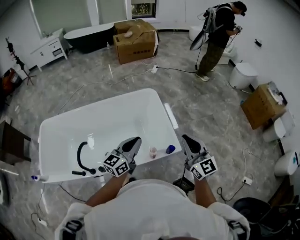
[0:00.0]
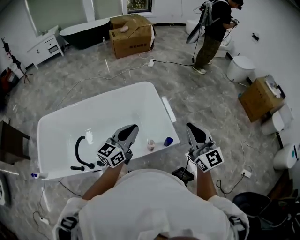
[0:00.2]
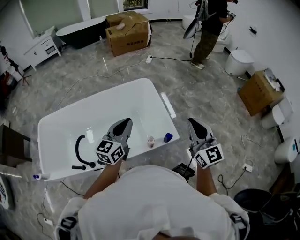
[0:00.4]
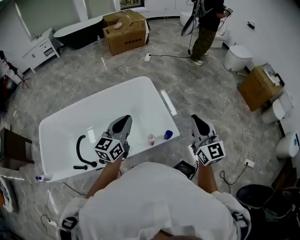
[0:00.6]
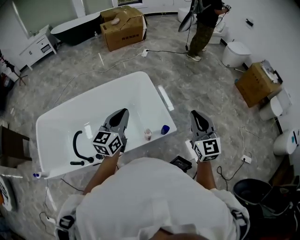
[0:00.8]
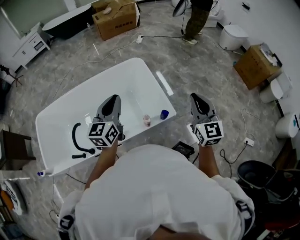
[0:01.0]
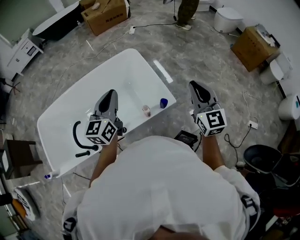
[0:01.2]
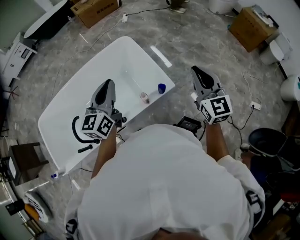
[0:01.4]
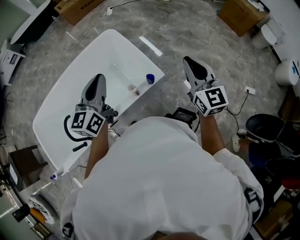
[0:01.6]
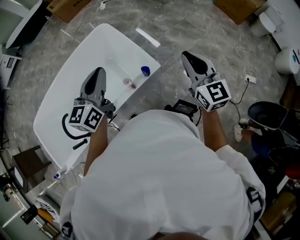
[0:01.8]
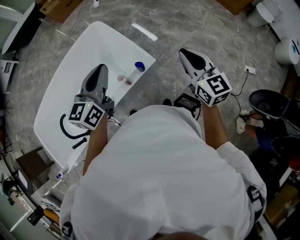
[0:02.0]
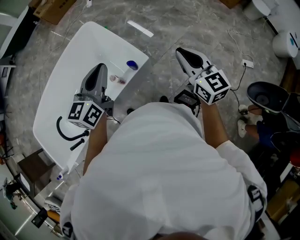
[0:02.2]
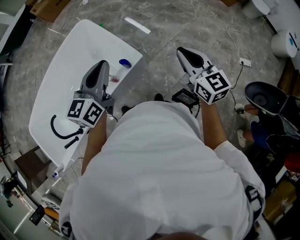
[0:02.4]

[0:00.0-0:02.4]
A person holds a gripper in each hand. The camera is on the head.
0:00.0 to 0:01.2: The right gripper goes some 10 cm to the right, and swivels roughly 20 degrees. Meanwhile the left gripper goes approximately 5 cm upward.
0:01.2 to 0:02.4: The right gripper is displaced to the right, downward and backward by roughly 20 cm; the left gripper shifts roughly 20 cm to the right, and turns by roughly 30 degrees.

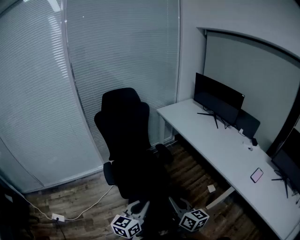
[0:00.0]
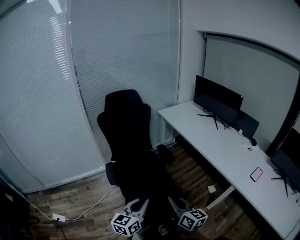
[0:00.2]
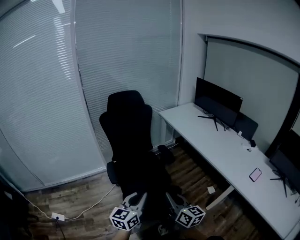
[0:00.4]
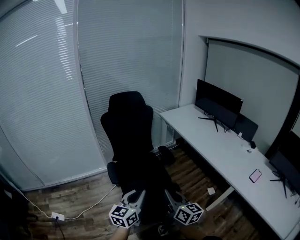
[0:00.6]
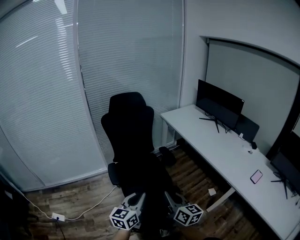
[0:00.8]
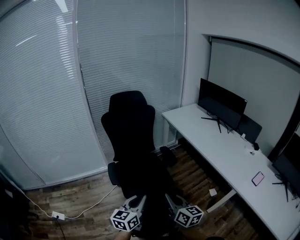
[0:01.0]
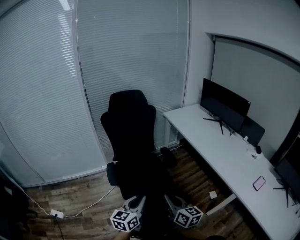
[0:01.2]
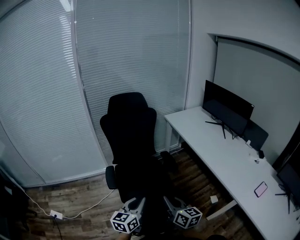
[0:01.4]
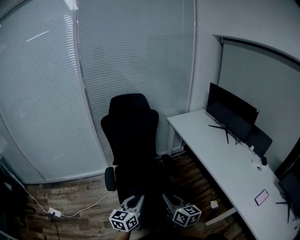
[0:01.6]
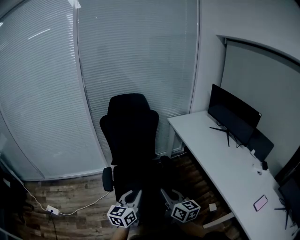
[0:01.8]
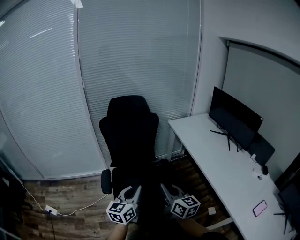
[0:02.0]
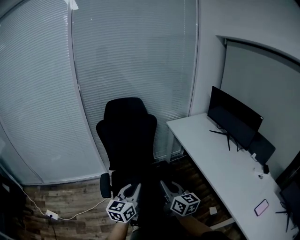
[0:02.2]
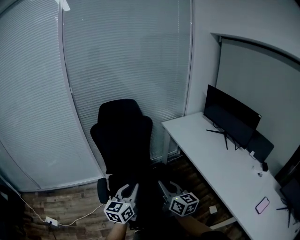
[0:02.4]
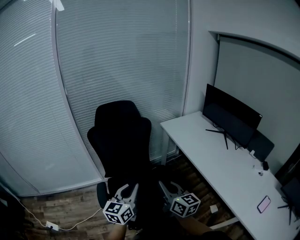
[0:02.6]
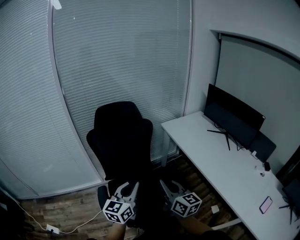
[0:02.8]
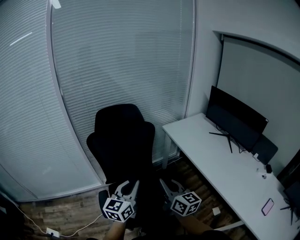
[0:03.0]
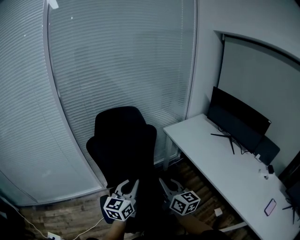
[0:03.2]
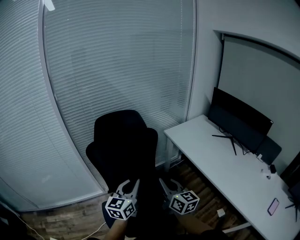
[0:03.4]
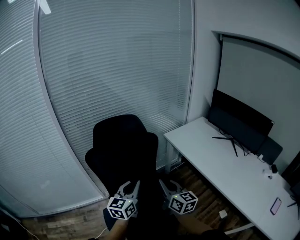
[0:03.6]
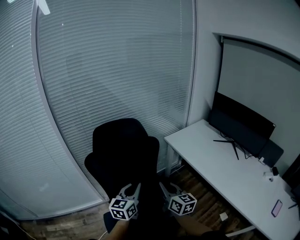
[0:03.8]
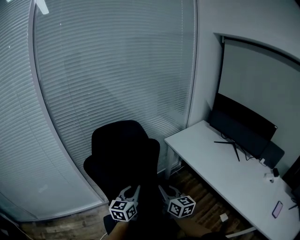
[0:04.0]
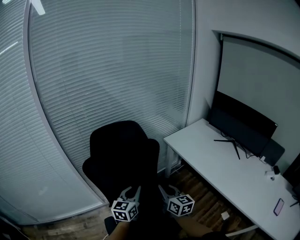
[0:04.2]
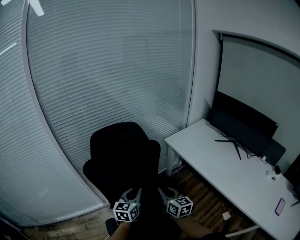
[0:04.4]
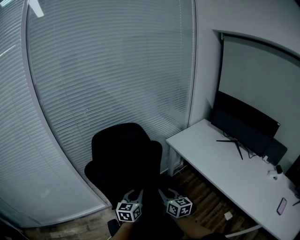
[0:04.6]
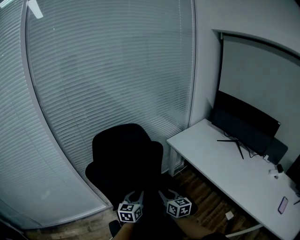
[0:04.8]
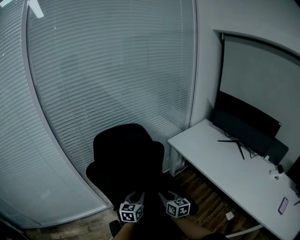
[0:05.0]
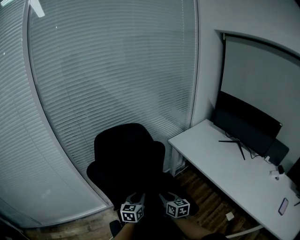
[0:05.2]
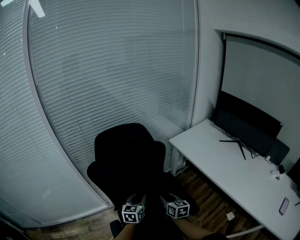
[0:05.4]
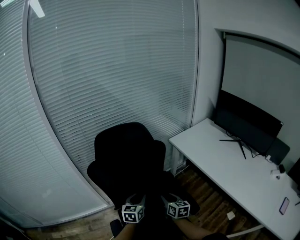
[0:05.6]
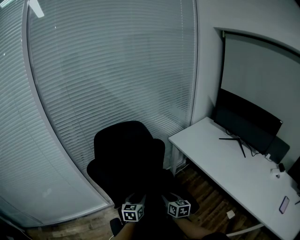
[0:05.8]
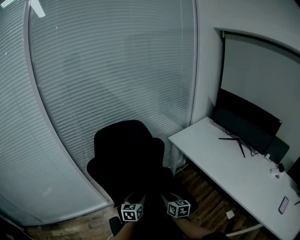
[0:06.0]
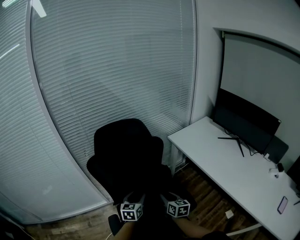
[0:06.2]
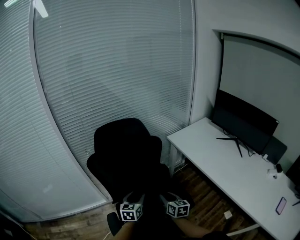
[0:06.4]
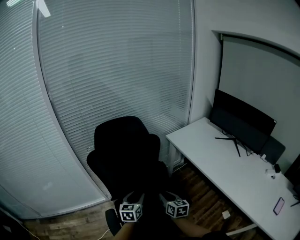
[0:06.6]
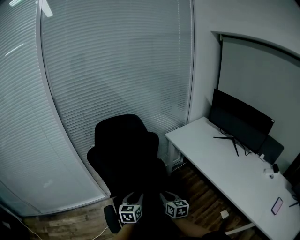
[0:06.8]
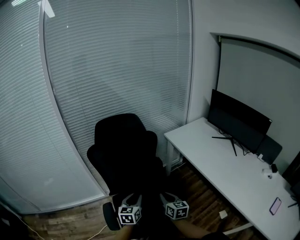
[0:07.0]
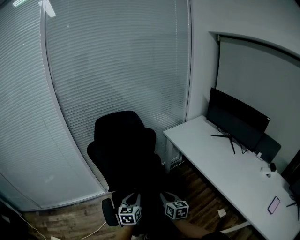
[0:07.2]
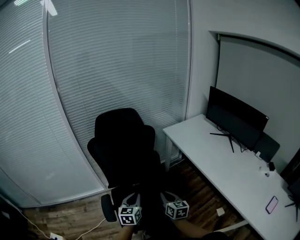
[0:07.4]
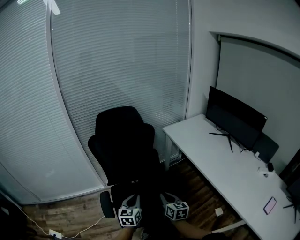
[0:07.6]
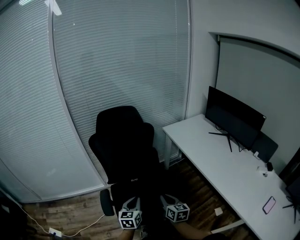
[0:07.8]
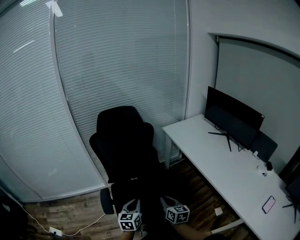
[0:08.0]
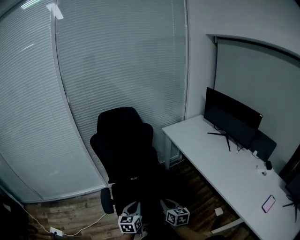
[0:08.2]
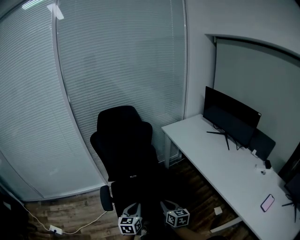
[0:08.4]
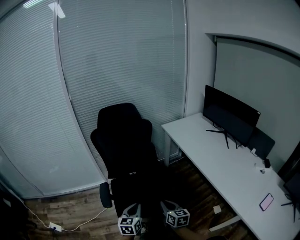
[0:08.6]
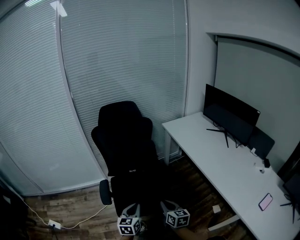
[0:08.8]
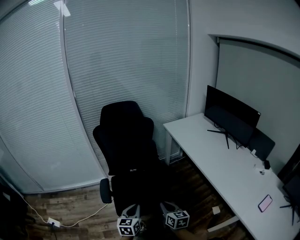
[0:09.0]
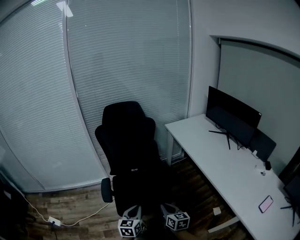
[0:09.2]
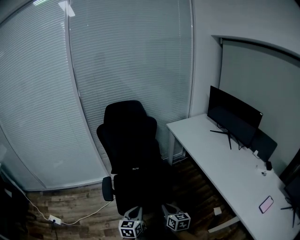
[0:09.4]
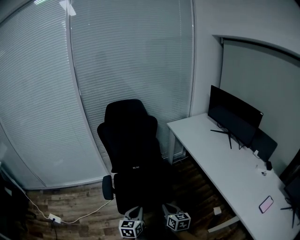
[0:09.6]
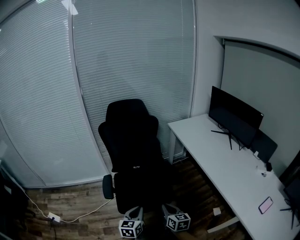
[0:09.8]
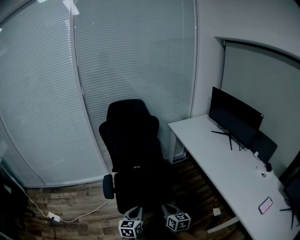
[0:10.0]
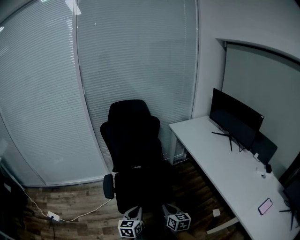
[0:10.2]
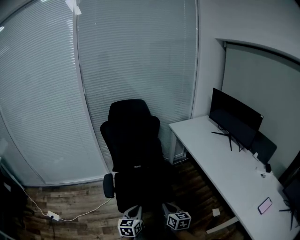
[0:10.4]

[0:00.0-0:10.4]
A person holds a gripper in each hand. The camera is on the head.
0:00.0 to 0:01.4: Both grippers move forward, about 5 cm.
0:01.4 to 0:03.0: The grippers both shift forward by roughly 30 cm.
0:03.0 to 0:04.4: The grippers both shift forward and downward by approximately 25 cm.
0:04.4 to 0:06.0: Both grippers travel together downward, approximately 10 cm. The left gripper opens up.
0:06.0 to 0:07.4: The two grippers go approximately 20 cm backward. The left gripper closes.
0:07.4 to 0:09.0: Both grippers travel together backward, approximately 20 cm.
0:09.0 to 0:10.4: The left gripper ends up about 5 cm from where it was.

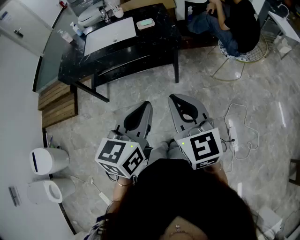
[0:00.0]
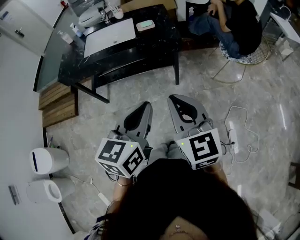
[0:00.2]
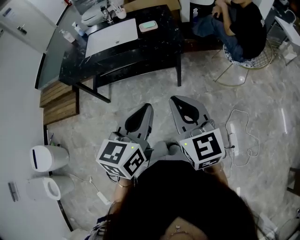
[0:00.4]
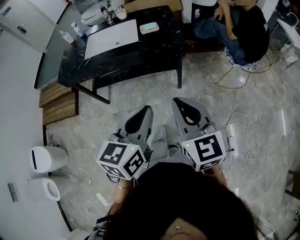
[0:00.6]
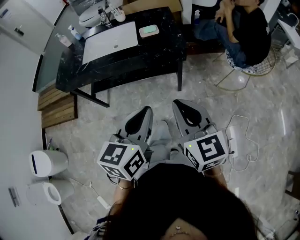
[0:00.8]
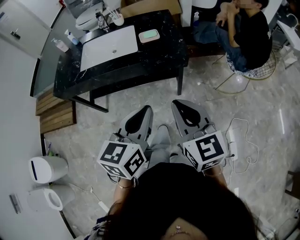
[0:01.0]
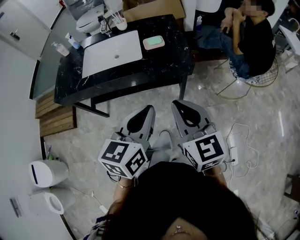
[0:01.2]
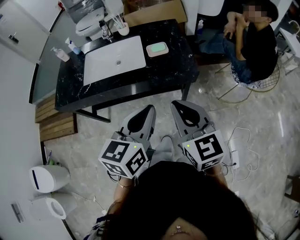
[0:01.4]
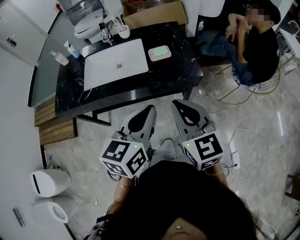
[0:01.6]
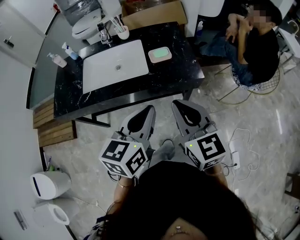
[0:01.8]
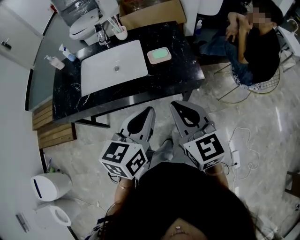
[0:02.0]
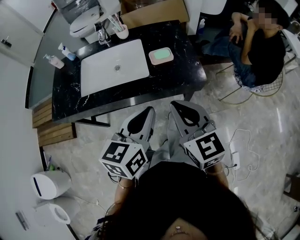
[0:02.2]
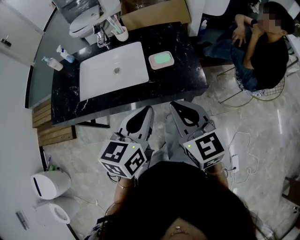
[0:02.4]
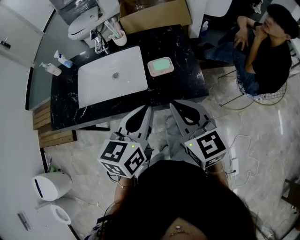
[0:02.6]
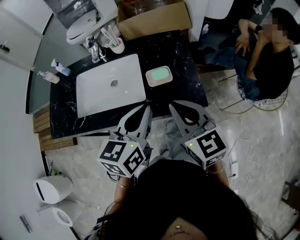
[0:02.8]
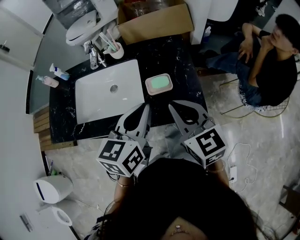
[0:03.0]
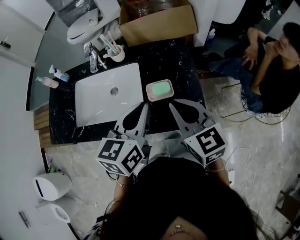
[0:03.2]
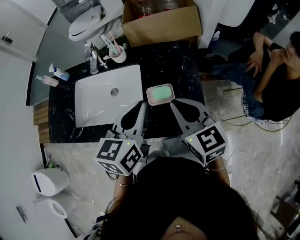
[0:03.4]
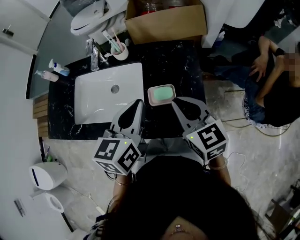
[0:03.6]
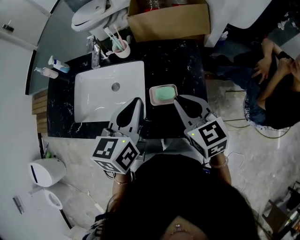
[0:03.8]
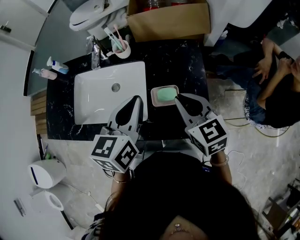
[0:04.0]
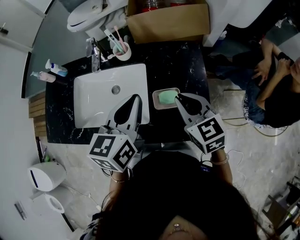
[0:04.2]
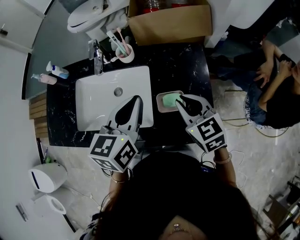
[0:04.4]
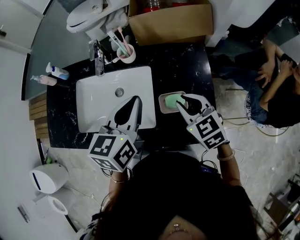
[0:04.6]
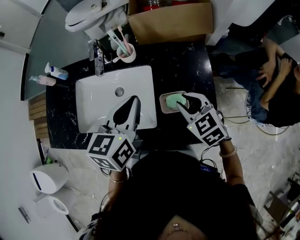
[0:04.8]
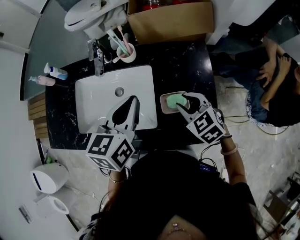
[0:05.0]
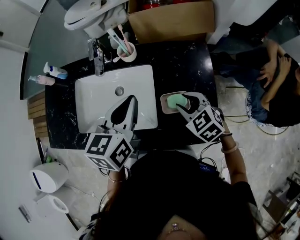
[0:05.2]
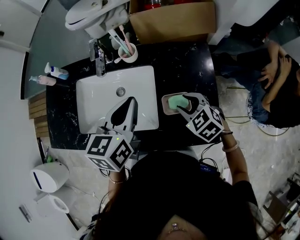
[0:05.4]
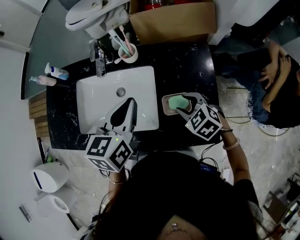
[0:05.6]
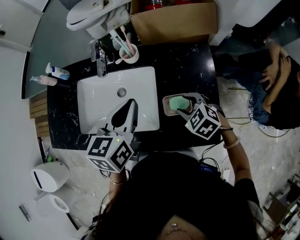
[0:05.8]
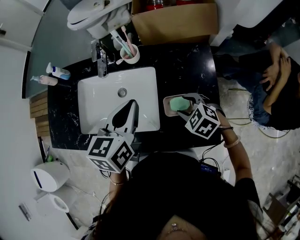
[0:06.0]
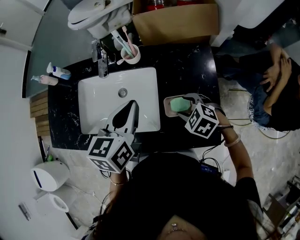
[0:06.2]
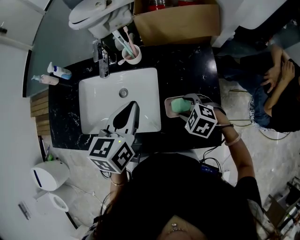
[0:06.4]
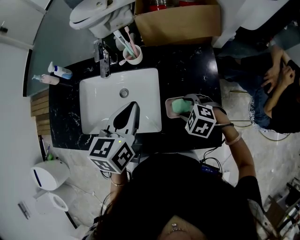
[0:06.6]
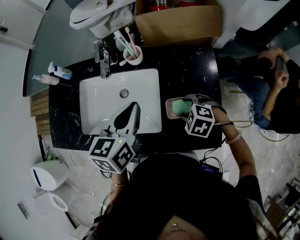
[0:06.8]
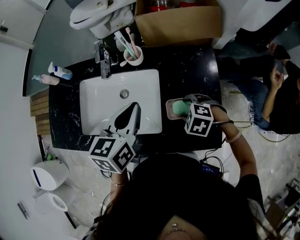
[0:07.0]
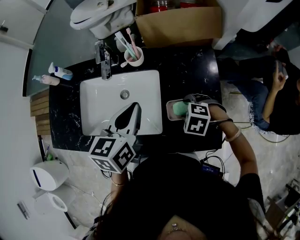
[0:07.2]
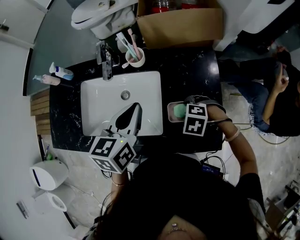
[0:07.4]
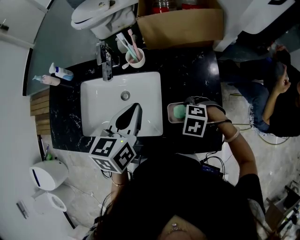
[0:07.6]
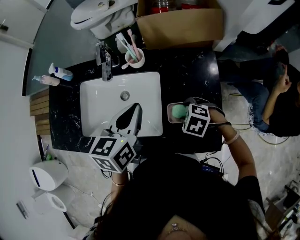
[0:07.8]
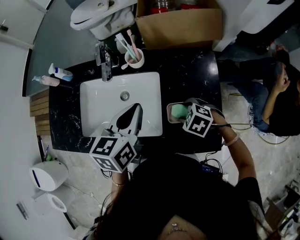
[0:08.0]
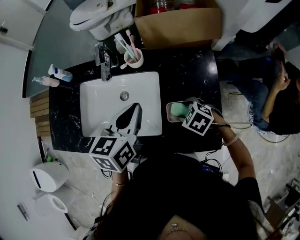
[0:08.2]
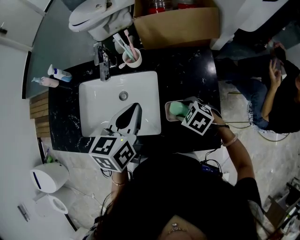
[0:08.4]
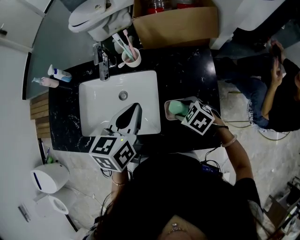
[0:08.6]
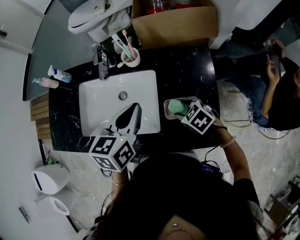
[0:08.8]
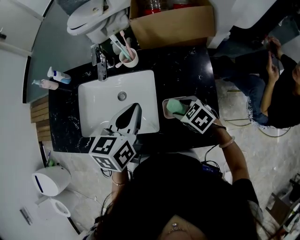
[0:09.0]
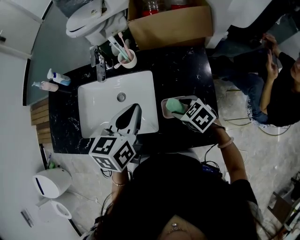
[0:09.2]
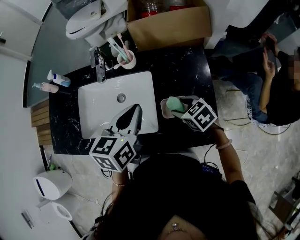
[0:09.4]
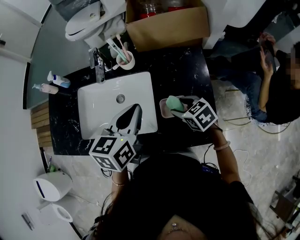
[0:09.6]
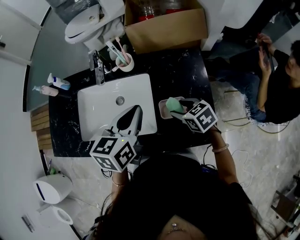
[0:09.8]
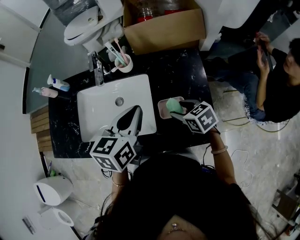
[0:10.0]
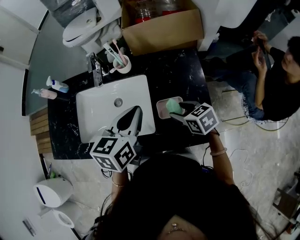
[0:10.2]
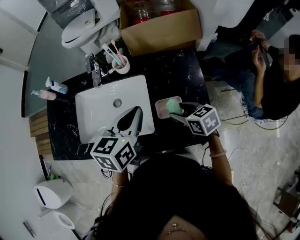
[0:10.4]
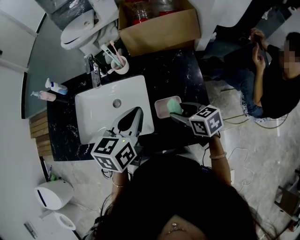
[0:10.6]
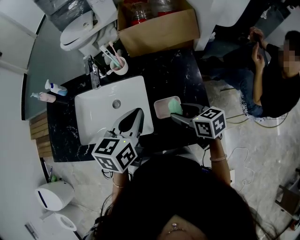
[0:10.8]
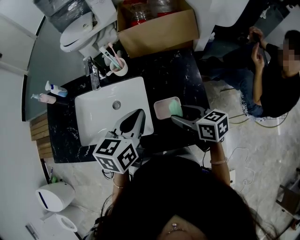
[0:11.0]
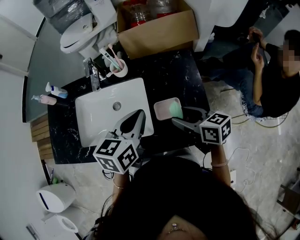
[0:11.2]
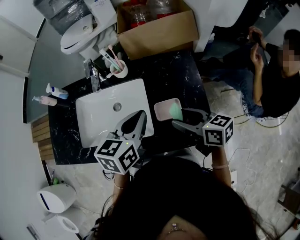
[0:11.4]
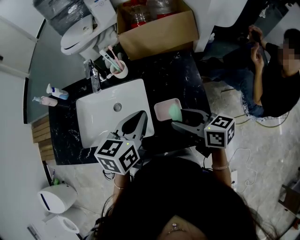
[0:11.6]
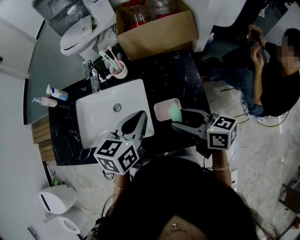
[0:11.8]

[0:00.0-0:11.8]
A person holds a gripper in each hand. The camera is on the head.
0:00.0 to 0:01.4: The two grippers go about 25 cm forward.
0:01.4 to 0:03.0: Both grippers move forward, some 30 cm.
0:03.0 to 0:04.4: The right gripper heads forward and downward, covering approximately 15 cm, while the left gripper heads forward, covering roughly 15 cm.
0:04.4 to 0:06.0: The right gripper heads downward, covering some 10 cm, swivels about 40 degrees, and opens. Meanwhile the left gripper shifts by approximately 5 cm.
0:06.0 to 0:07.4: The right gripper swivels approximately 30 degrees.
0:07.4 to 0:08.8: The right gripper turns by roughly 30 degrees.
0:08.8 to 0:10.4: The right gripper ends up some 5 cm from where it was, and rotates some 30 degrees.
0:10.4 to 0:11.8: The right gripper moves upward, roughly 10 cm, and swivels roughly 30 degrees.
